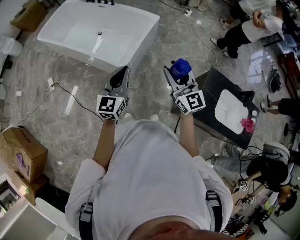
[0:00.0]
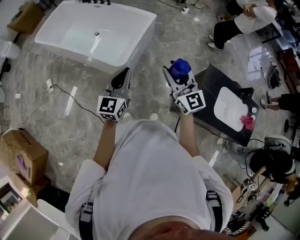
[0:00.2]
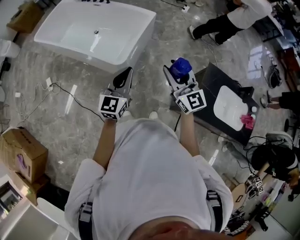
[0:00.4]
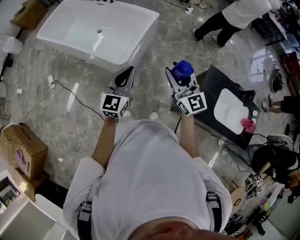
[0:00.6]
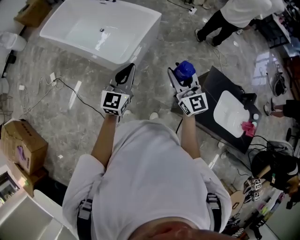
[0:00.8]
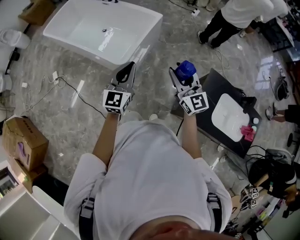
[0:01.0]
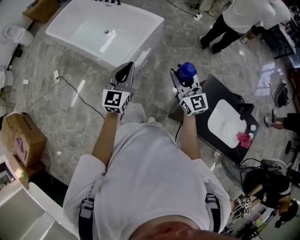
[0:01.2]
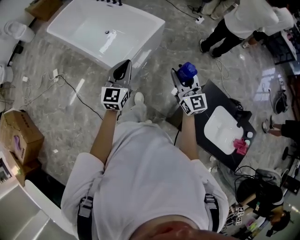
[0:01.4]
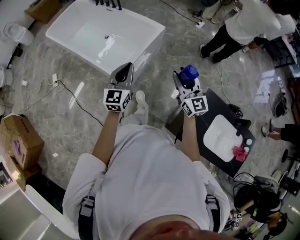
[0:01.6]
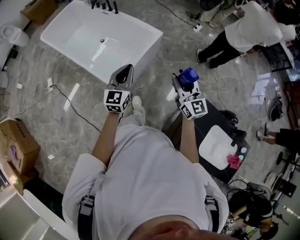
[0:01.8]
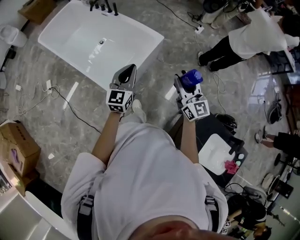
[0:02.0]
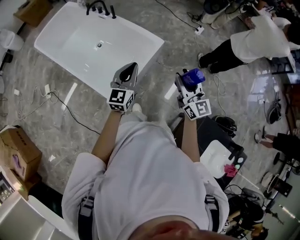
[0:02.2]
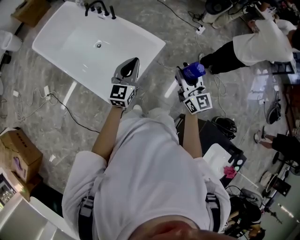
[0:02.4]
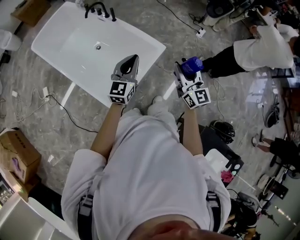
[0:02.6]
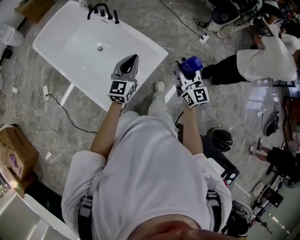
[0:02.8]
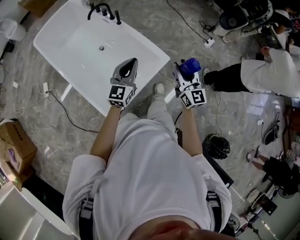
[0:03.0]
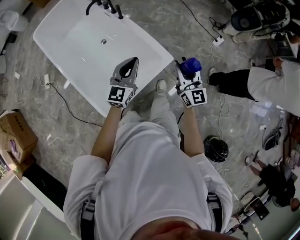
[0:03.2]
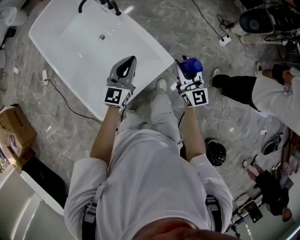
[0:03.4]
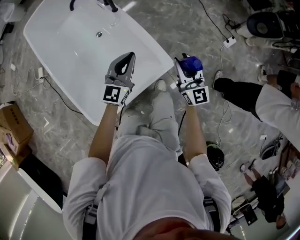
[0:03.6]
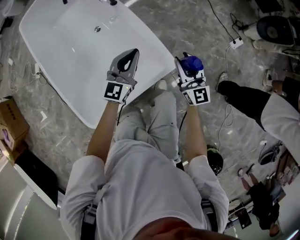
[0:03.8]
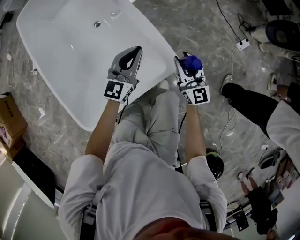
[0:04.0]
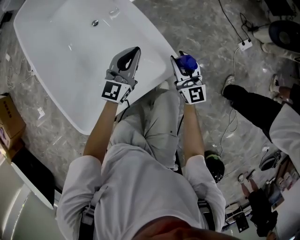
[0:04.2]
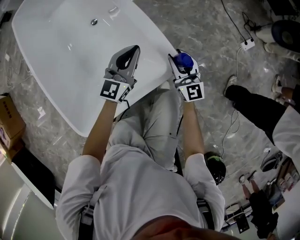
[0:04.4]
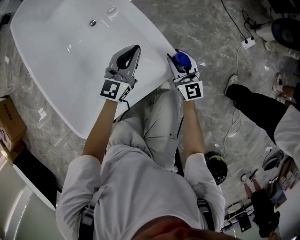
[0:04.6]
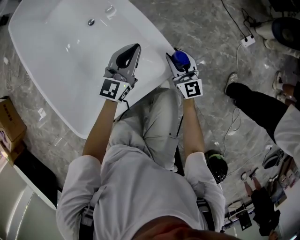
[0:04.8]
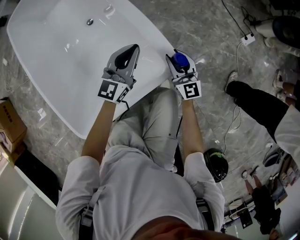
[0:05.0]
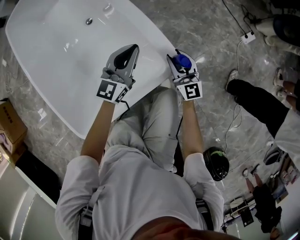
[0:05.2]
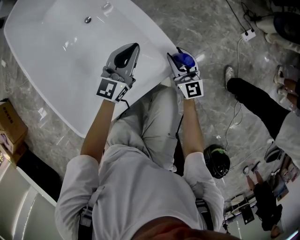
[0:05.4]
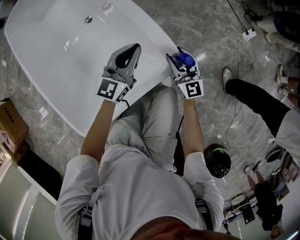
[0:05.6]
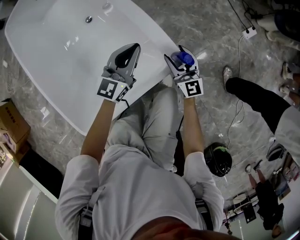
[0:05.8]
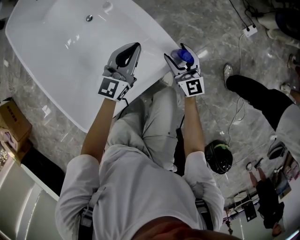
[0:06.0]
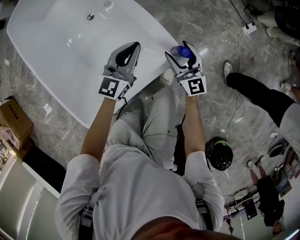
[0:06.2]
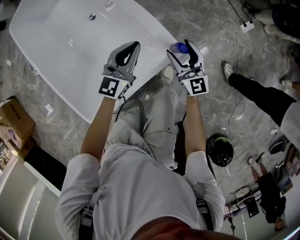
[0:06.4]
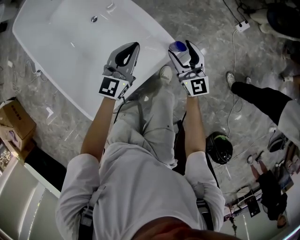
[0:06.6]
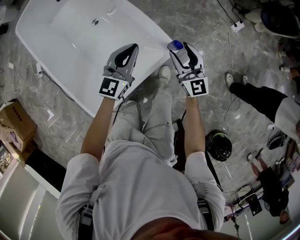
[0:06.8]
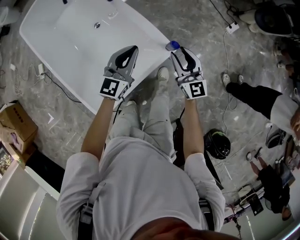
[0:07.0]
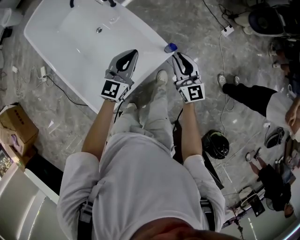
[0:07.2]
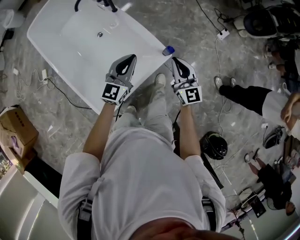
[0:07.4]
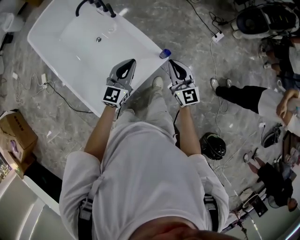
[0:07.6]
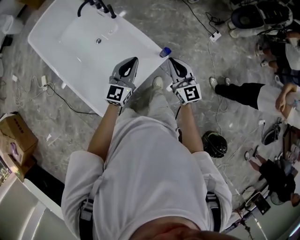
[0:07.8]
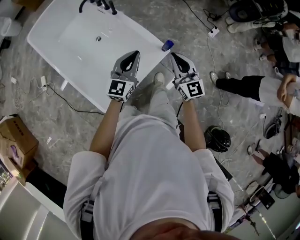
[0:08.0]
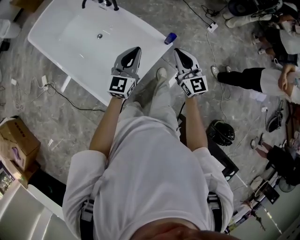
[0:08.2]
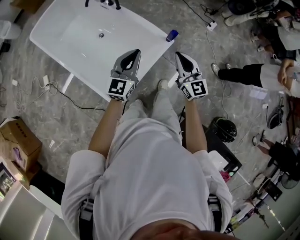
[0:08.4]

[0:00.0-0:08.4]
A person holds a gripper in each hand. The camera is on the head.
0:00.0 to 0:01.4: Both grippers travel together to the right and forward, roughly 15 cm.
0:01.4 to 0:02.8: The two grippers travel together, forward, roughly 50 cm.
0:02.8 to 0:04.2: The grippers both shift downward and forward by approximately 50 cm.
0:04.2 to 0:05.6: The right gripper heads downward, covering approximately 5 cm.
0:05.6 to 0:07.0: The two grippers go about 20 cm upward. The right gripper opens, then closes again.
0:07.0 to 0:08.4: Both grippers move backward, upward and to the left, about 25 cm. The right gripper closes up.

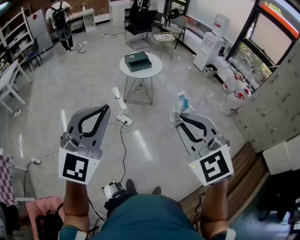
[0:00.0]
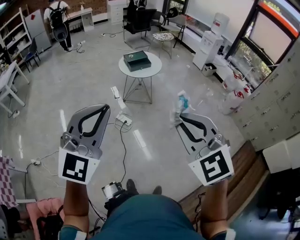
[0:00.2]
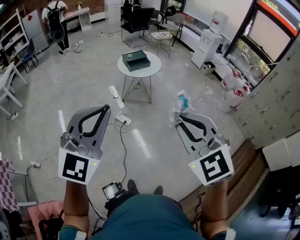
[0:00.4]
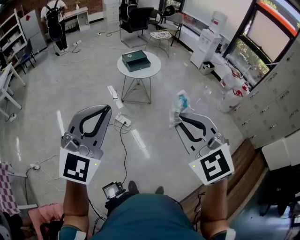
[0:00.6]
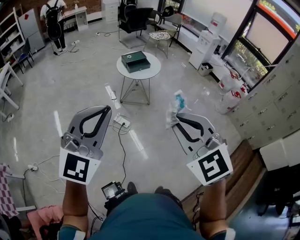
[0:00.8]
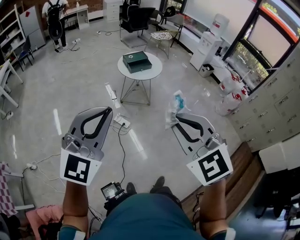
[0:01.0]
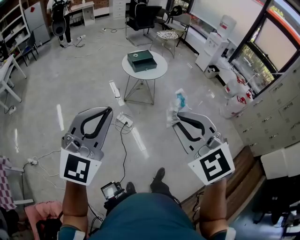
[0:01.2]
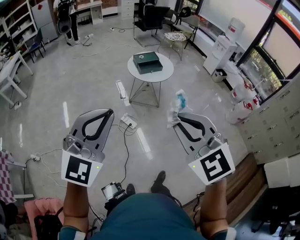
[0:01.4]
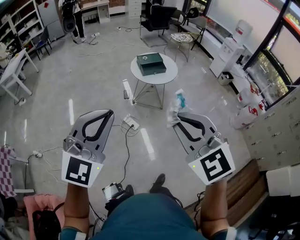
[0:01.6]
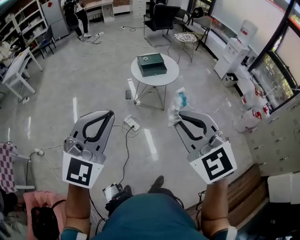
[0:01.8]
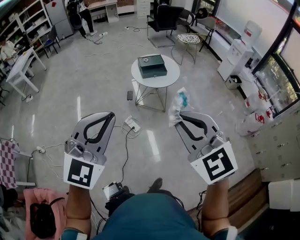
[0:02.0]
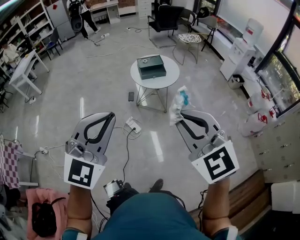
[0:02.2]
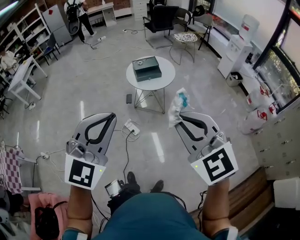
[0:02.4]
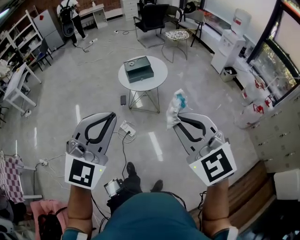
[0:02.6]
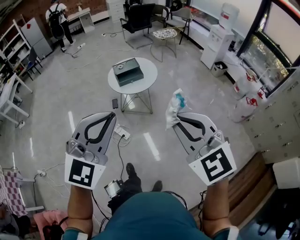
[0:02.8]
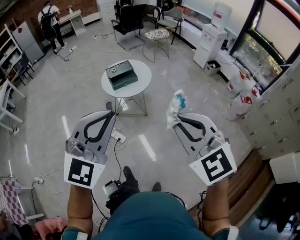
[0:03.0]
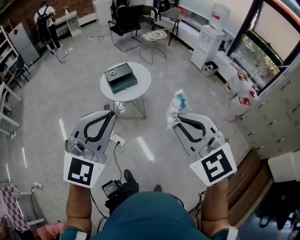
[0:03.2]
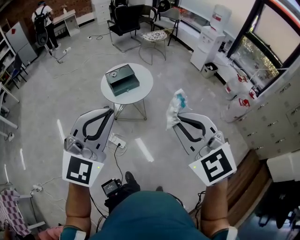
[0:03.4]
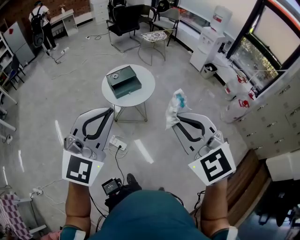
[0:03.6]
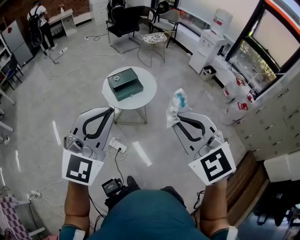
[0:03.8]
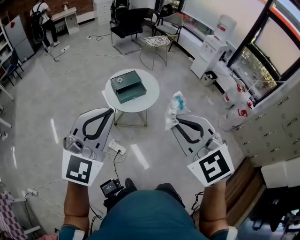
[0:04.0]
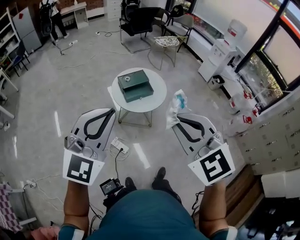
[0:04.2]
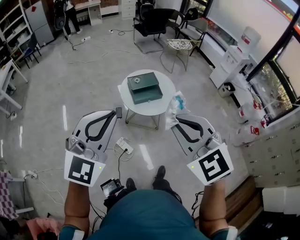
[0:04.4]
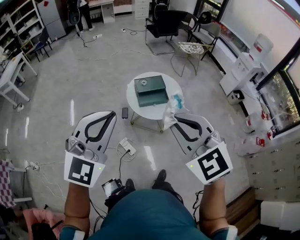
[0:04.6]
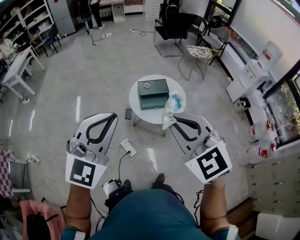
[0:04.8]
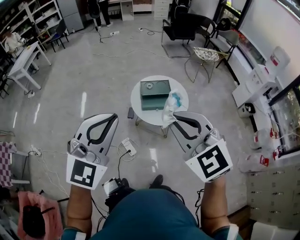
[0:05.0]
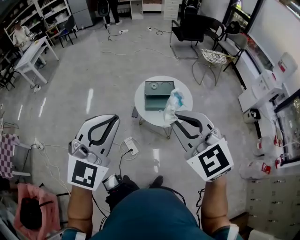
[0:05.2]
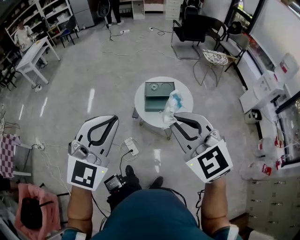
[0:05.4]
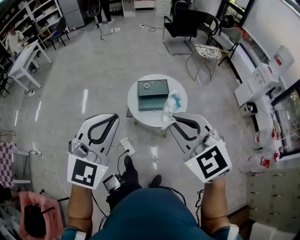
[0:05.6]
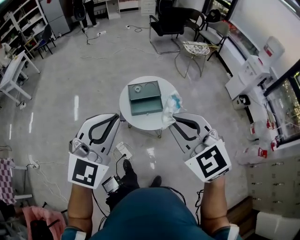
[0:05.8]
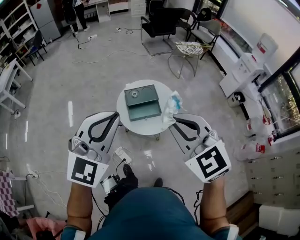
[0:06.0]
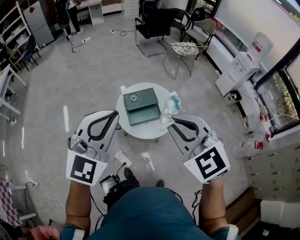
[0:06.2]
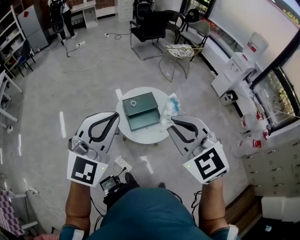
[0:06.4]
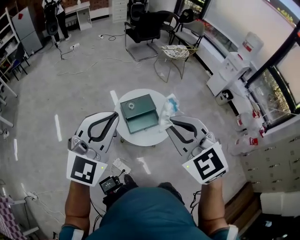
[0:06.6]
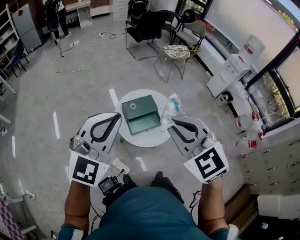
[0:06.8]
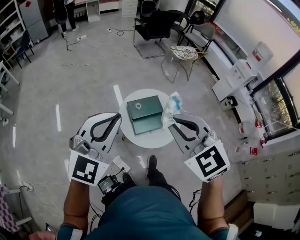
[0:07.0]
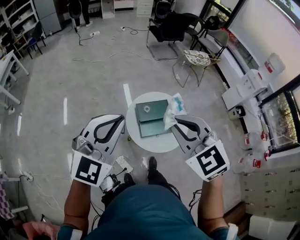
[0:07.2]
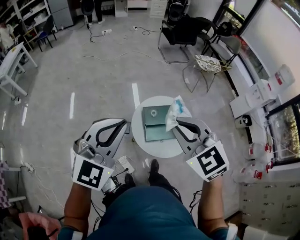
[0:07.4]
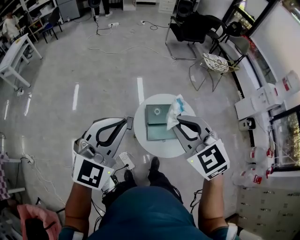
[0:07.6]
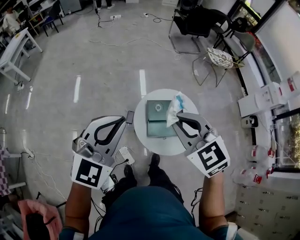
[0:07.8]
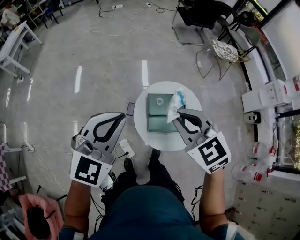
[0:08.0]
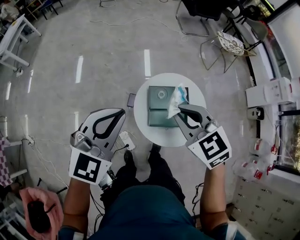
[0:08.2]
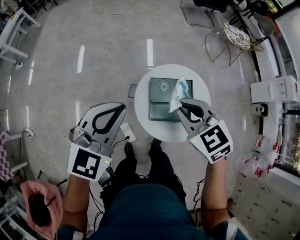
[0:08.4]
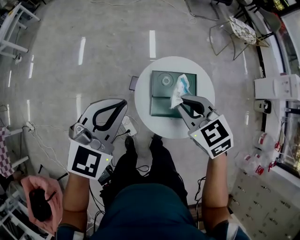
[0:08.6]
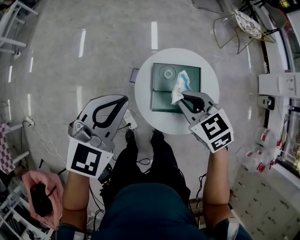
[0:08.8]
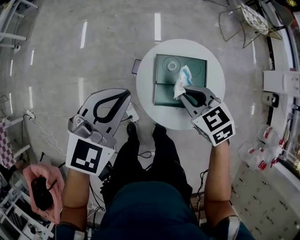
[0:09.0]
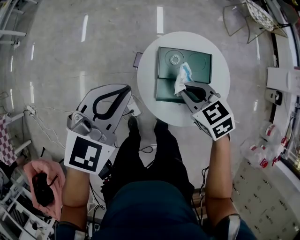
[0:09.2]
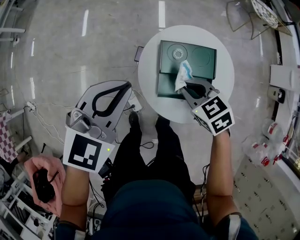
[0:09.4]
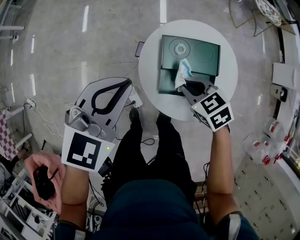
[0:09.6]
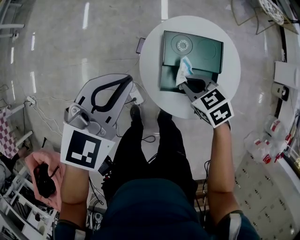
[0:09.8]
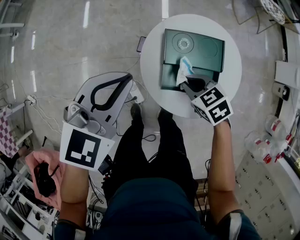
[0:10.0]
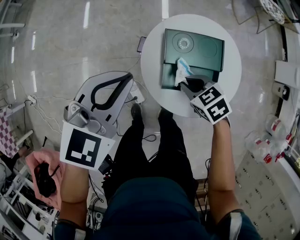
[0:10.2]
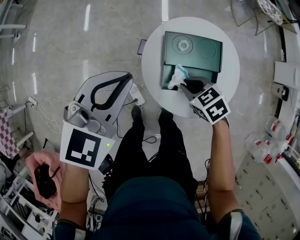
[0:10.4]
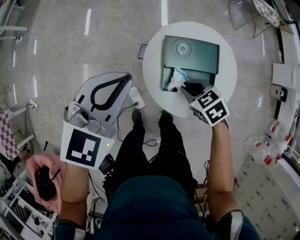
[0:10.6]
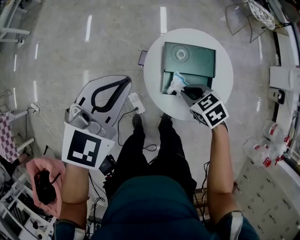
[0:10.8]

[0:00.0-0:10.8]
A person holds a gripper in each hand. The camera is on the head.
0:00.0 to 0:01.6: Both grippers travel together forward, about 25 cm.
0:01.6 to 0:03.0: Both grippers move to the right and forward, approximately 35 cm.
0:03.0 to 0:04.6: Both grippers move forward and to the left, some 40 cm.
0:04.6 to 0:06.2: Both grippers travel together forward, roughly 25 cm.
0:06.2 to 0:07.8: The two grippers go some 30 cm forward and to the left.
0:07.8 to 0:09.2: Both grippers move downward, roughly 35 cm. The left gripper turns by approximately 20 degrees; the right gripper turns by about 30 degrees.
0:09.2 to 0:10.8: The left gripper moves about 5 cm downward and comes back; the right gripper heads backward and downward, covering about 5 cm.

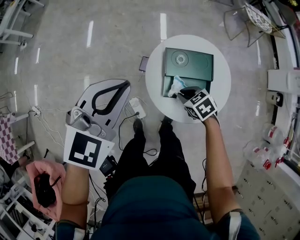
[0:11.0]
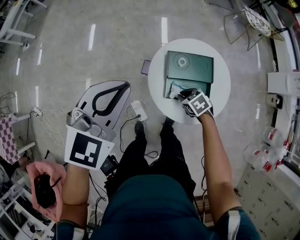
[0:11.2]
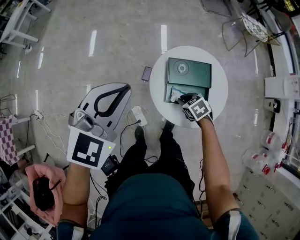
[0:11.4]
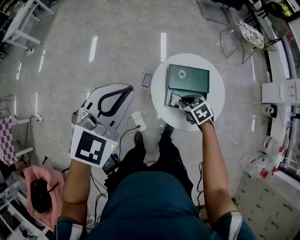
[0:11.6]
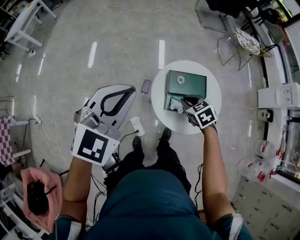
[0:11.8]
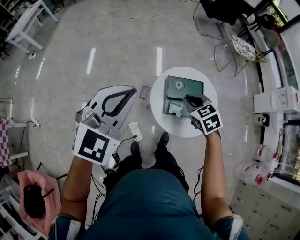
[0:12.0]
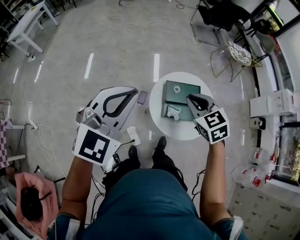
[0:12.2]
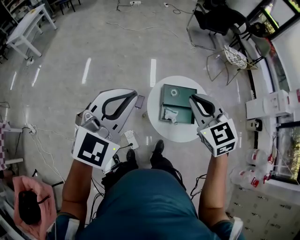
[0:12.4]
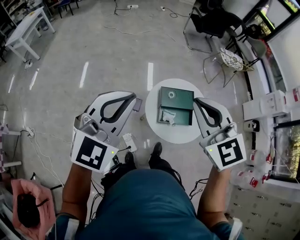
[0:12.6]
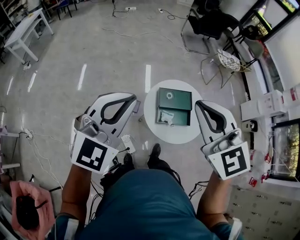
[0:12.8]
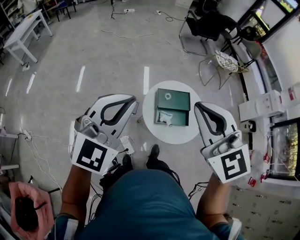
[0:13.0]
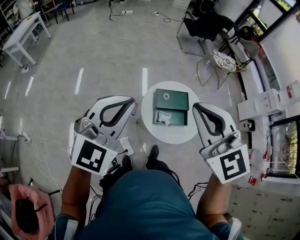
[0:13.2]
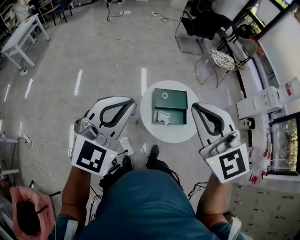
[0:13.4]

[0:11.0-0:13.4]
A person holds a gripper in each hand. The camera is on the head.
0:11.0 to 0:12.2: The left gripper travels upward and to the left by about 25 cm. The right gripper is displaced upward by some 35 cm, and rotates roughly 30 degrees.
0:12.2 to 0:13.4: The right gripper heads upward and backward, covering approximately 30 cm, and changes its angle by about 30 degrees, while the left gripper goes some 10 cm backward and upward.

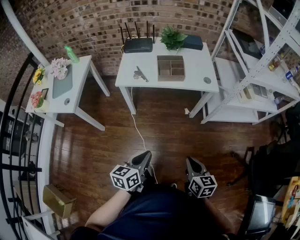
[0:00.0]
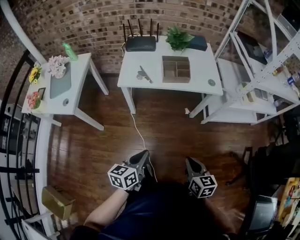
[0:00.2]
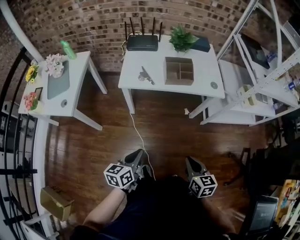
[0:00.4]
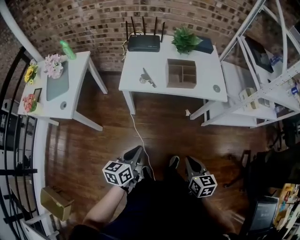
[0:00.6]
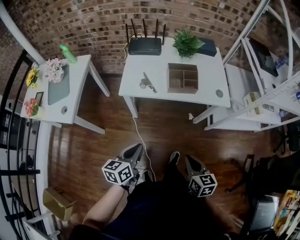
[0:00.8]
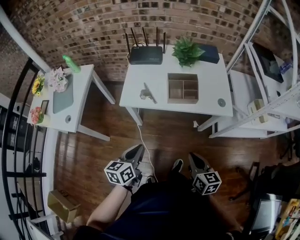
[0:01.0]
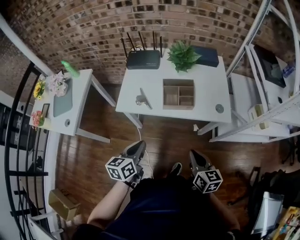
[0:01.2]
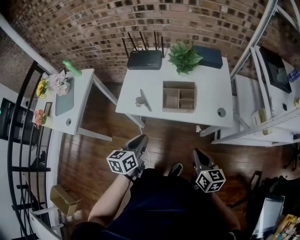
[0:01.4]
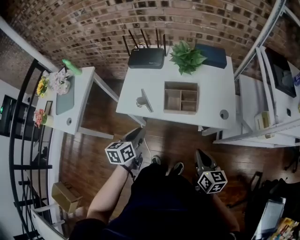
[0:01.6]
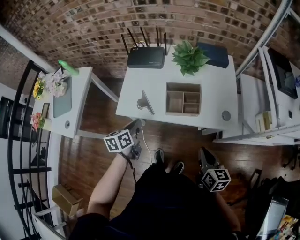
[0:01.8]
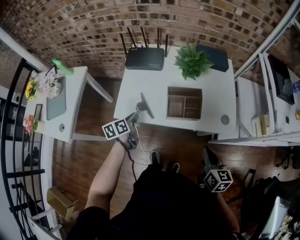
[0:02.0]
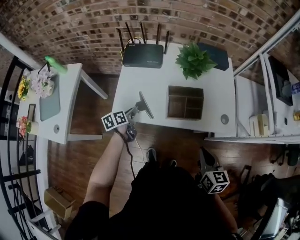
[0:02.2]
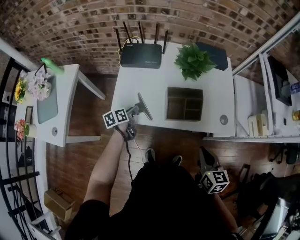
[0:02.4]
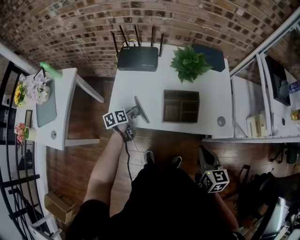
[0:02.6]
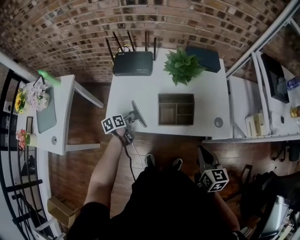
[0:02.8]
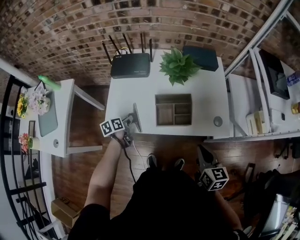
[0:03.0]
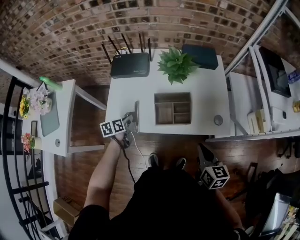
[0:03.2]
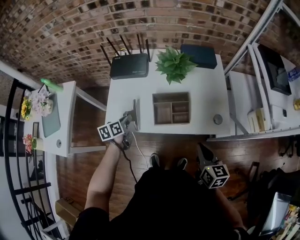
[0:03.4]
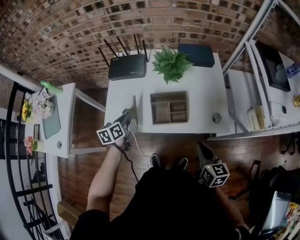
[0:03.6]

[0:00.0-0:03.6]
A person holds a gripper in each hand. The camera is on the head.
0:00.0 to 0:01.8: Both grippers move forward, approximately 40 cm. The left gripper changes its angle by about 20 degrees.
0:01.8 to 0:03.6: The left gripper travels forward by approximately 10 cm, travels downward and back again, some 15 cm each way, and opens, then closes once more; the right gripper goes about 5 cm forward.
